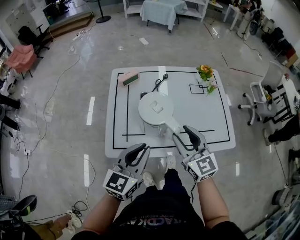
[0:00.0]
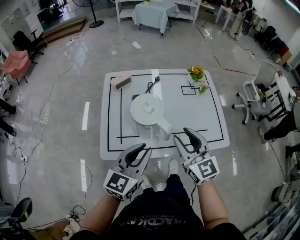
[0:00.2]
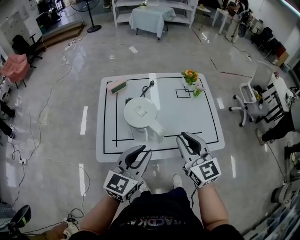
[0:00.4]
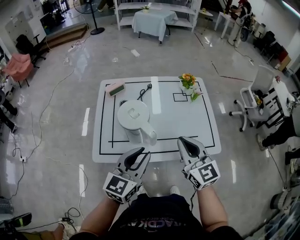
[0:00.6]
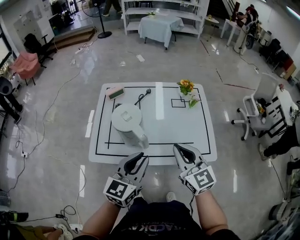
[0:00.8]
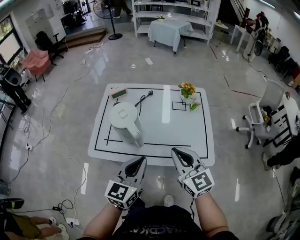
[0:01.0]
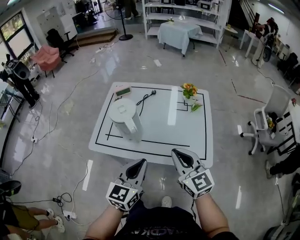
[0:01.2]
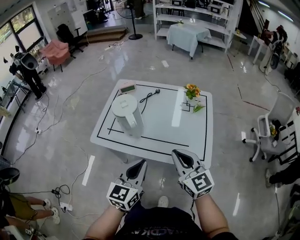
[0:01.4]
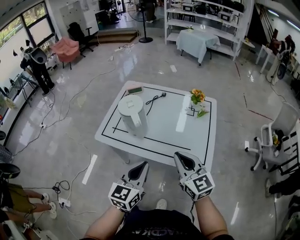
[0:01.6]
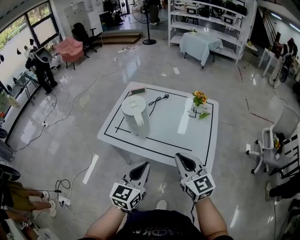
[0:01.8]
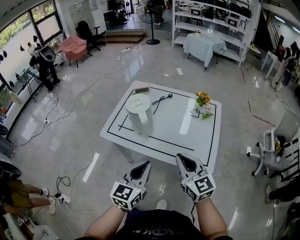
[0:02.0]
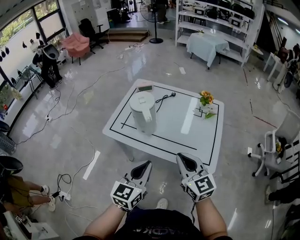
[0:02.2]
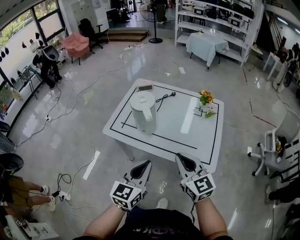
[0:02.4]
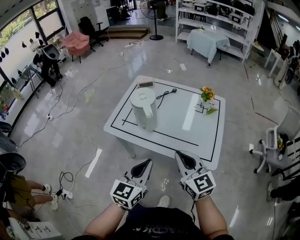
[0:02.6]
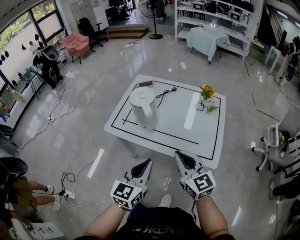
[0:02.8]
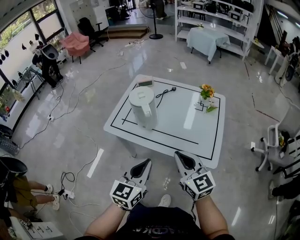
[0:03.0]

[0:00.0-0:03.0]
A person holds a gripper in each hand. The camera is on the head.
0:00.0 to 0:01.6: The right gripper moves about 20 cm, and closes its fingers; the left gripper ends up approximately 25 cm from where it was, and turns by about 20 degrees.
0:01.6 to 0:03.0: The right gripper ends up about 5 cm from where it was.

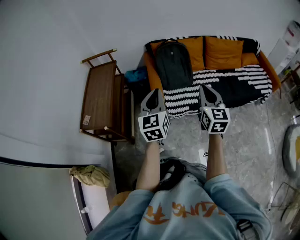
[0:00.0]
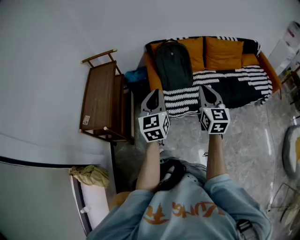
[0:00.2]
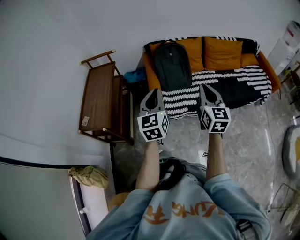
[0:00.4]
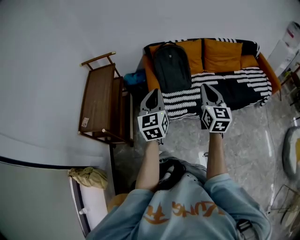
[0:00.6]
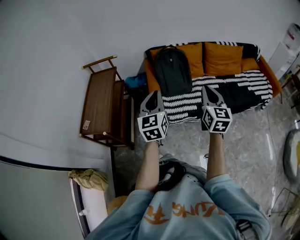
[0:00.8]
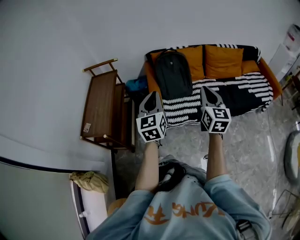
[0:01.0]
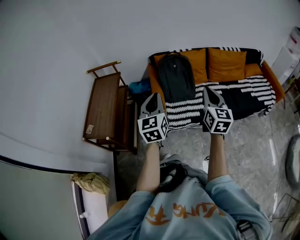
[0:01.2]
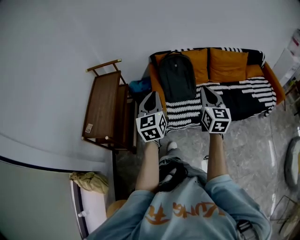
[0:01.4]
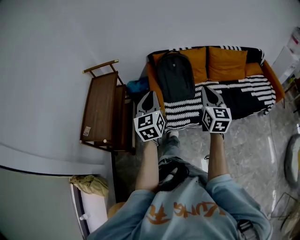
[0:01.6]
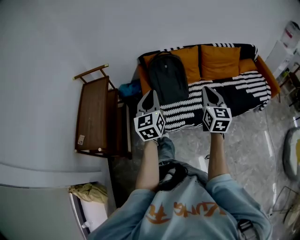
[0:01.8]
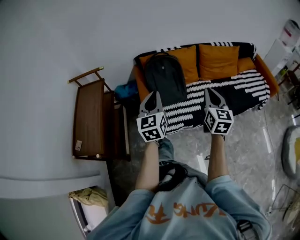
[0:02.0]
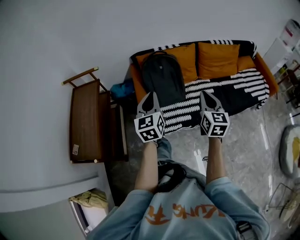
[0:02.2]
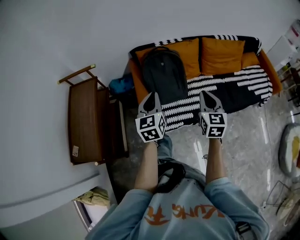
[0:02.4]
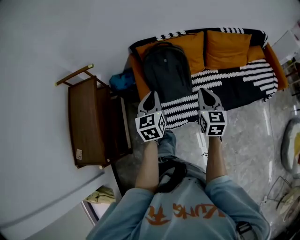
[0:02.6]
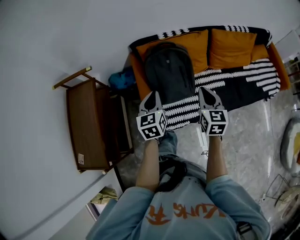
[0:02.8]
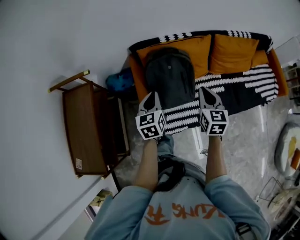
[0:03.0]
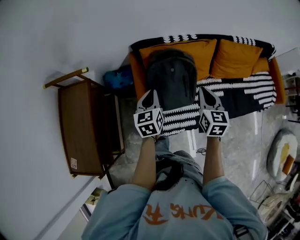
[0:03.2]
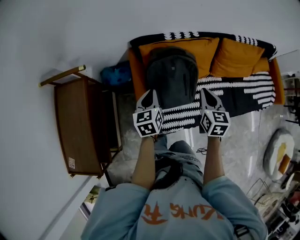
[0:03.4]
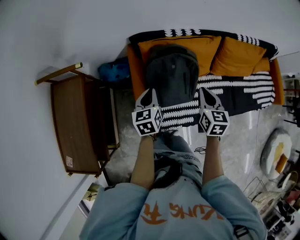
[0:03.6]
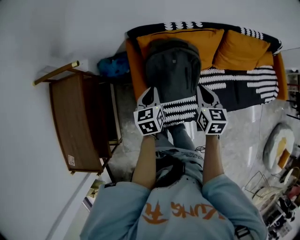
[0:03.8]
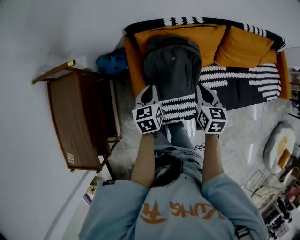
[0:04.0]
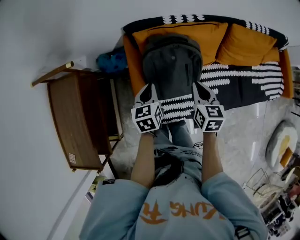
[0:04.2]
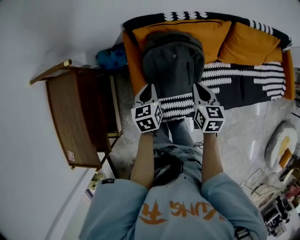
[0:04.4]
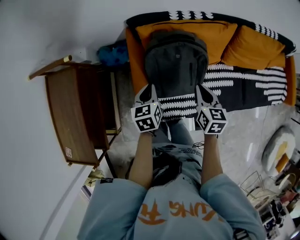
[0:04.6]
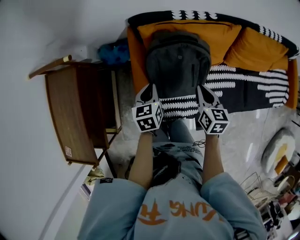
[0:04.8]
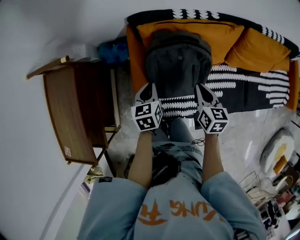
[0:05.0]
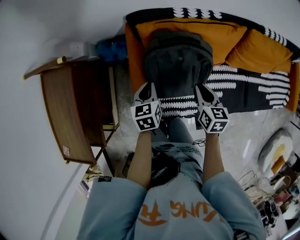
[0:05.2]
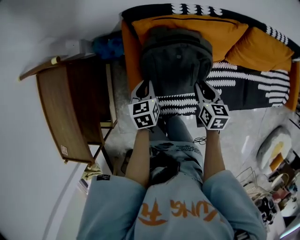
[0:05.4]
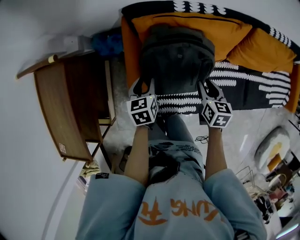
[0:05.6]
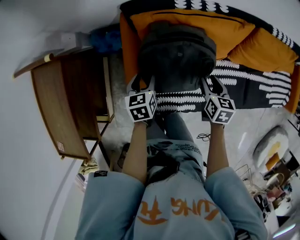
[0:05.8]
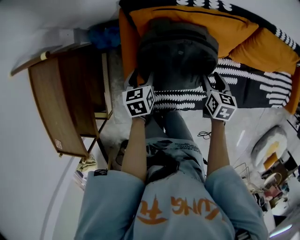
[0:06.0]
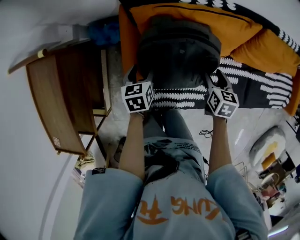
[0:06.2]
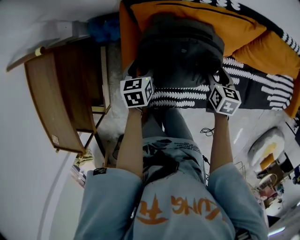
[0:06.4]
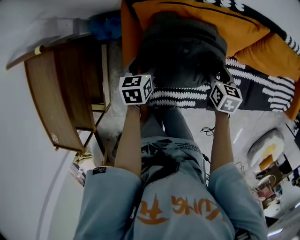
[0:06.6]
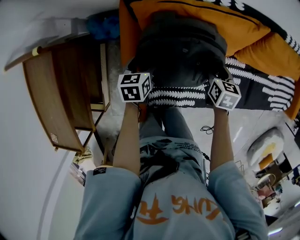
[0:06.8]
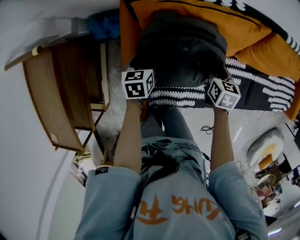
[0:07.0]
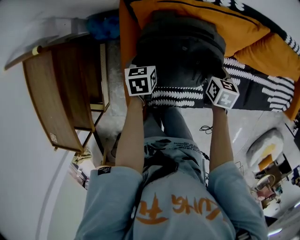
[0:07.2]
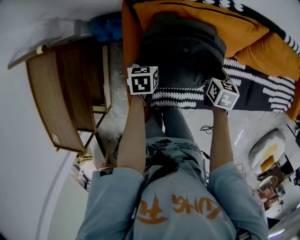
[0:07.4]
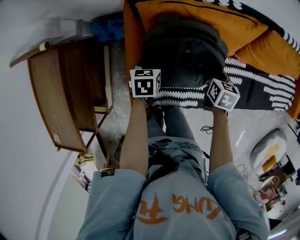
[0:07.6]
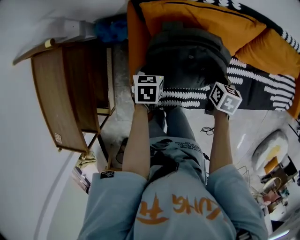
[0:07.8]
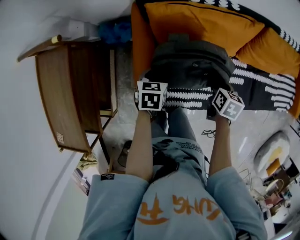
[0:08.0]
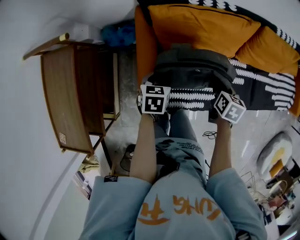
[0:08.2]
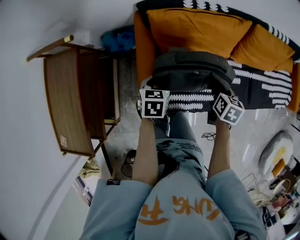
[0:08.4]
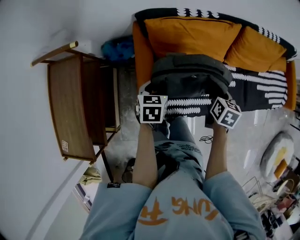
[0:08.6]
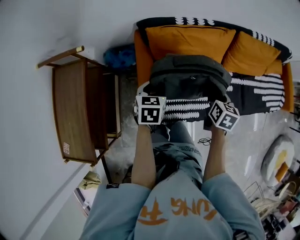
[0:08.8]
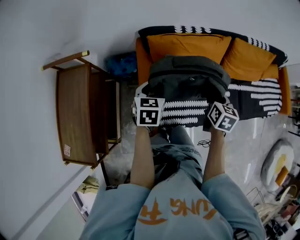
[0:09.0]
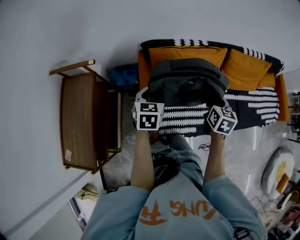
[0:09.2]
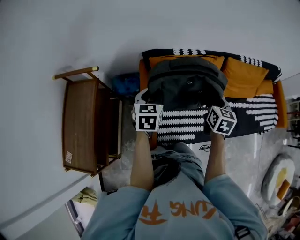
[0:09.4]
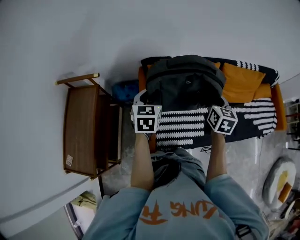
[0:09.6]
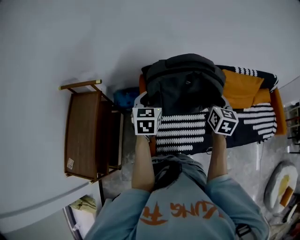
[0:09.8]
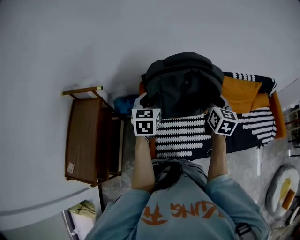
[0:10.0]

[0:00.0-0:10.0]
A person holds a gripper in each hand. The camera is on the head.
0:00.0 to 0:01.4: The grippers both shift forward by about 5 cm.
0:01.4 to 0:02.8: The grippers both shift forward and downward by approximately 35 cm. The right gripper swivels roughly 20 degrees; the left gripper swivels approximately 20 degrees.
0:02.8 to 0:04.2: The left gripper travels downward and forward by approximately 15 cm, while the right gripper is displaced forward and downward by approximately 15 cm.
0:04.2 to 0:05.8: The left gripper goes roughly 15 cm downward, and opens its fingers. Meanwhile the right gripper is displaced downward, to the right and forward by about 15 cm, and opens.
0:05.8 to 0:07.2: Both grippers travel together downward and forward, roughly 10 cm.
0:07.2 to 0:08.6: Both grippers move upward and backward, some 20 cm. The left gripper closes its fingers.
0:08.6 to 0:10.0: The two grippers go some 25 cm upward. The left gripper turns by some 30 degrees. The right gripper rotates roughly 30 degrees.

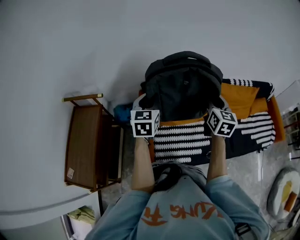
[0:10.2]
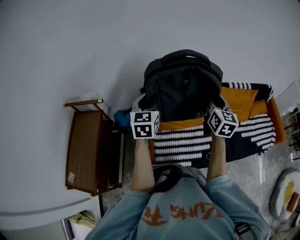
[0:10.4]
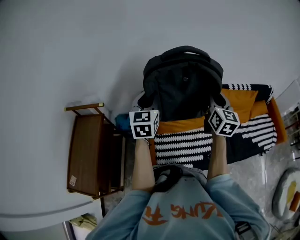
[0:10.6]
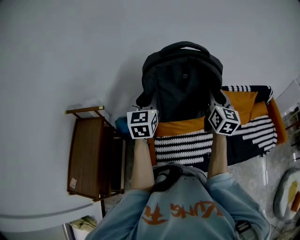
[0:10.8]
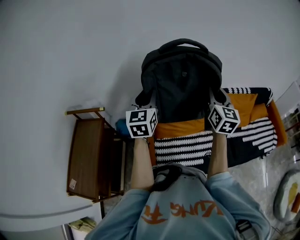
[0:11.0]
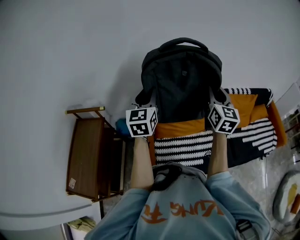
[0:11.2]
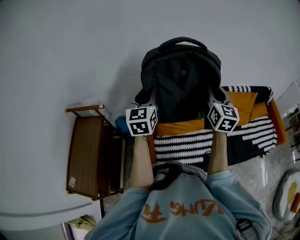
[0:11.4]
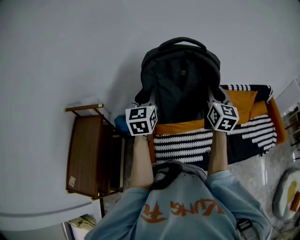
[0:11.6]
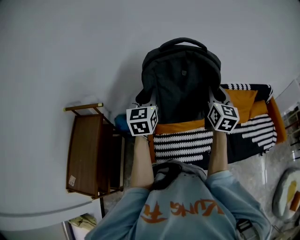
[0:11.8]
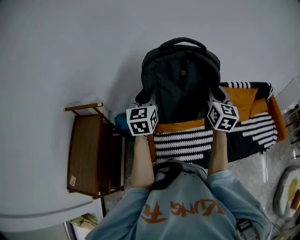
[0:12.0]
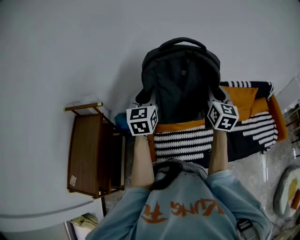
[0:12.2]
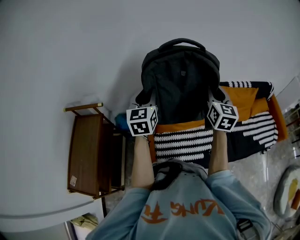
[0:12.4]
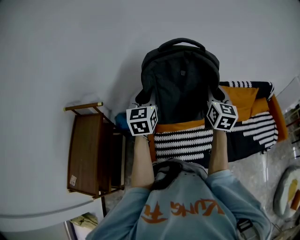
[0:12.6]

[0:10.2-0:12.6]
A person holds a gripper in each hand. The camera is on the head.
0:10.2 to 0:11.4: The two grippers go roughly 10 cm upward.
0:11.4 to 0:12.6: The grippers stay close to where they were, moving slightly.

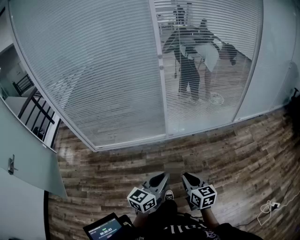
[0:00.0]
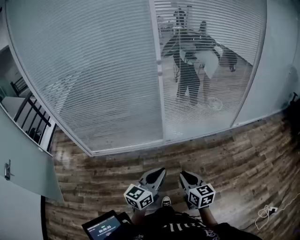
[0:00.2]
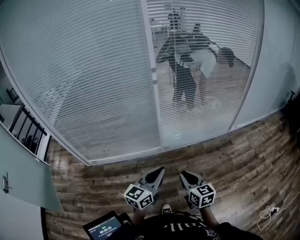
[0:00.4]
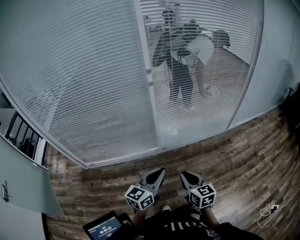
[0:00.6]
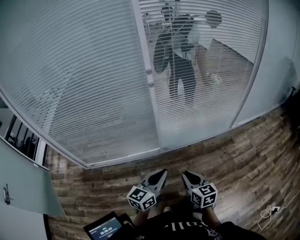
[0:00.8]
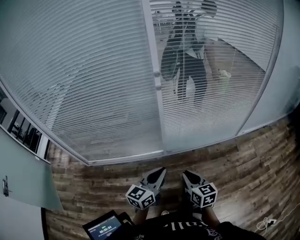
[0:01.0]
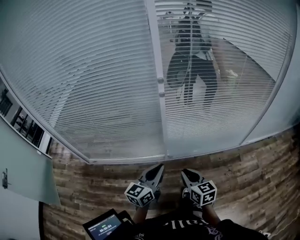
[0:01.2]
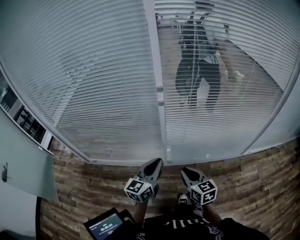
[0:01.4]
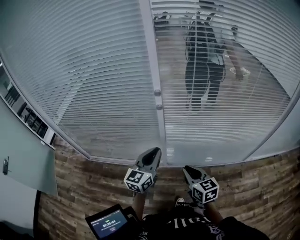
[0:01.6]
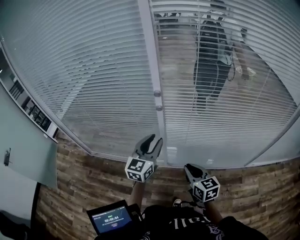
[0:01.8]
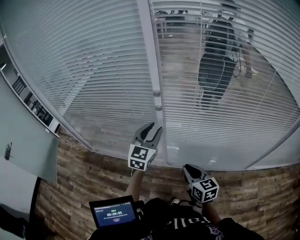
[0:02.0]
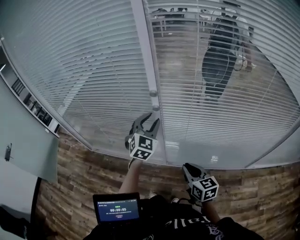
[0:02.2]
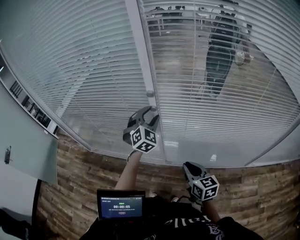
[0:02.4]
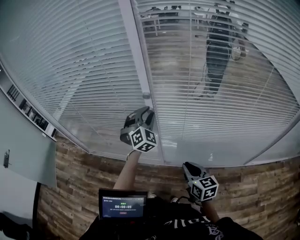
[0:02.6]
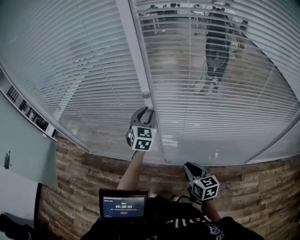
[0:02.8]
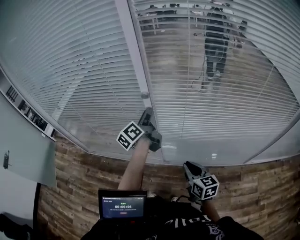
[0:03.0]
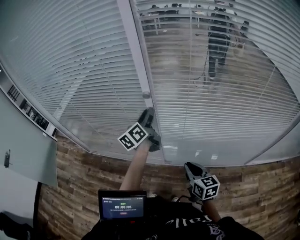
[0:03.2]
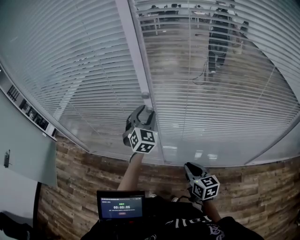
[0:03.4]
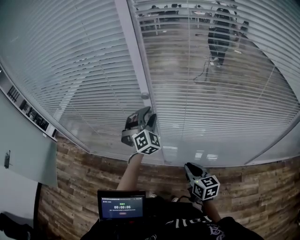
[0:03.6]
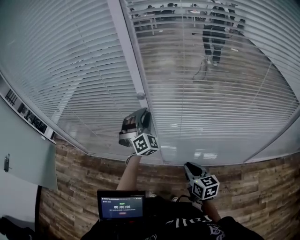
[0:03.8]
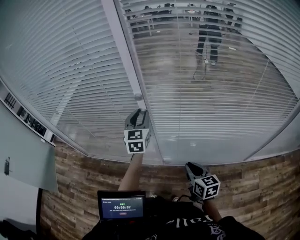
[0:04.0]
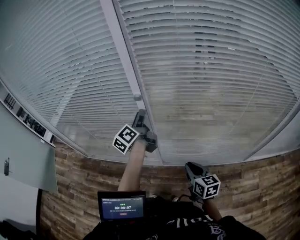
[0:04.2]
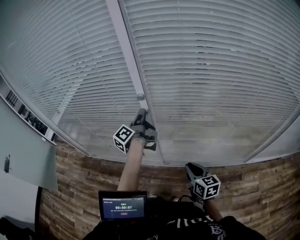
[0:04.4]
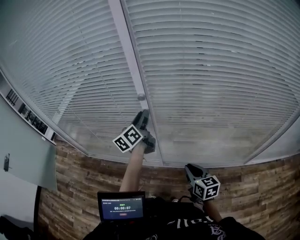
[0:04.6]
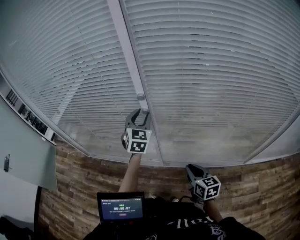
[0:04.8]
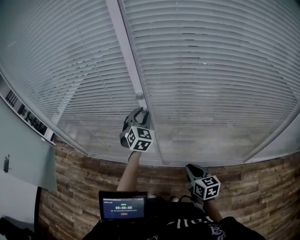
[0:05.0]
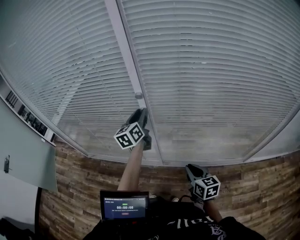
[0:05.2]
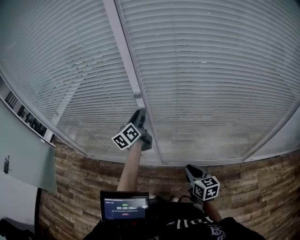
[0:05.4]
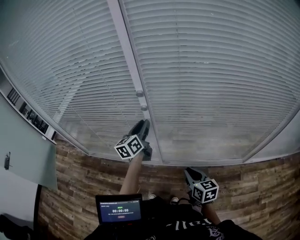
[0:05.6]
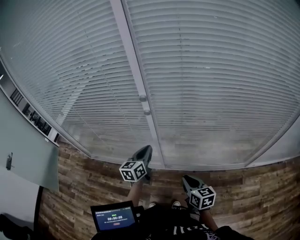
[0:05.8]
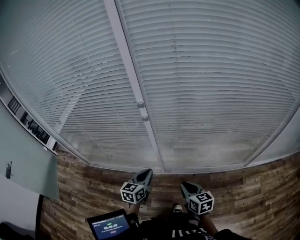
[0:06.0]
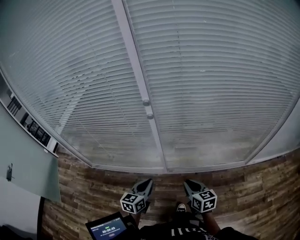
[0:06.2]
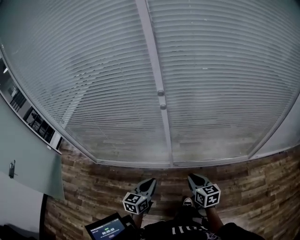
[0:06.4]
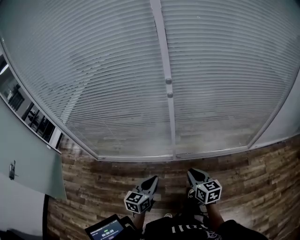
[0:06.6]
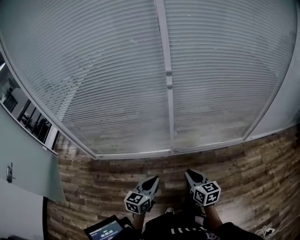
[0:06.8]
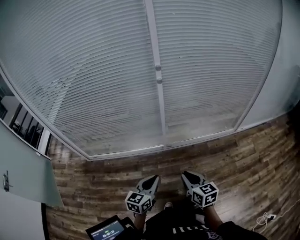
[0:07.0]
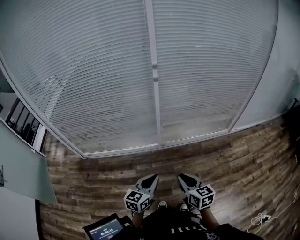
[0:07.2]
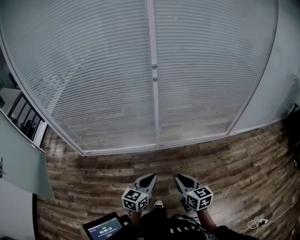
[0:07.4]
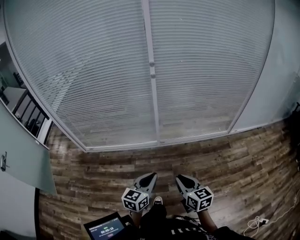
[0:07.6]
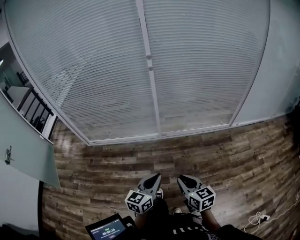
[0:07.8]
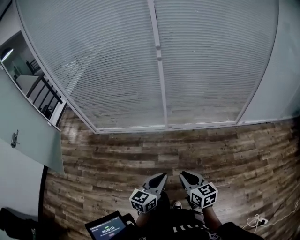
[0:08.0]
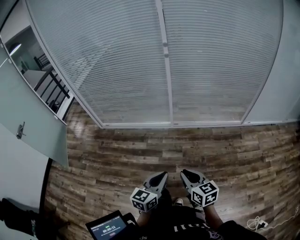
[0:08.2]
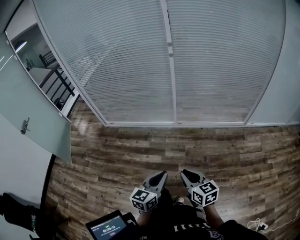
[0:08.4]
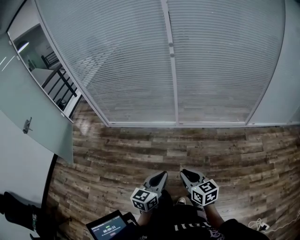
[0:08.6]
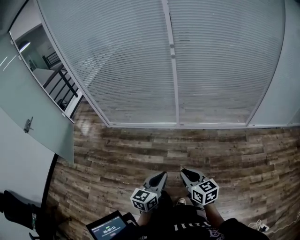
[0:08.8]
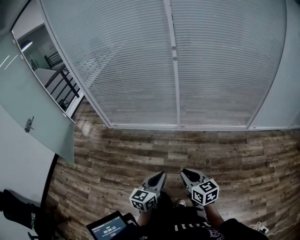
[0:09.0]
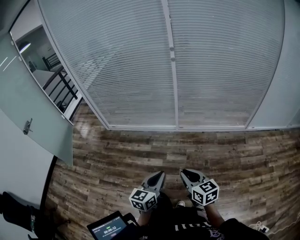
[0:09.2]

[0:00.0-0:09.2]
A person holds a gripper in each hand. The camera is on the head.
0:00.0 to 0:01.6: The two grippers travel together, forward, about 50 cm. The left gripper swivels some 30 degrees.
0:01.6 to 0:03.0: The left gripper shifts about 25 cm forward, rotates around the line of its fingers by some 50 degrees, counterclockwise from behind, and opens its fingers; the right gripper shifts about 10 cm to the right and forward.
0:04.6 to 0:06.2: The right gripper moves backward, roughly 10 cm; the left gripper is displaced backward and downward by roughly 30 cm, rotates roughly 40 degrees, and closes.
0:06.2 to 0:07.6: Both grippers move backward, some 40 cm.
0:07.6 to 0:09.2: Both grippers move backward, about 20 cm.
